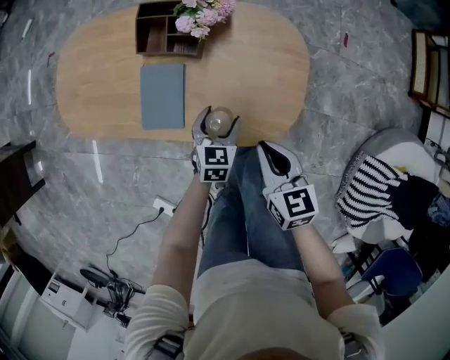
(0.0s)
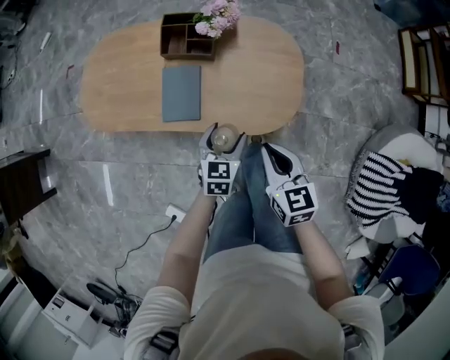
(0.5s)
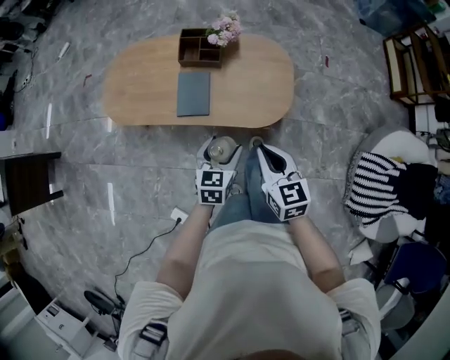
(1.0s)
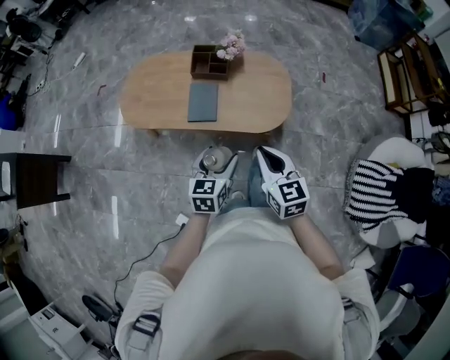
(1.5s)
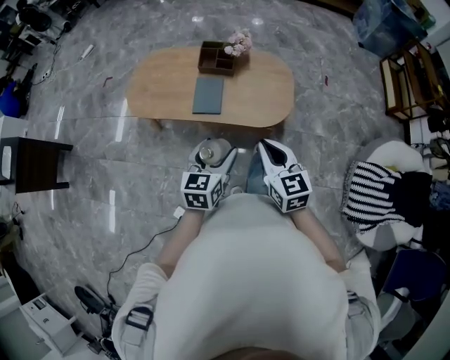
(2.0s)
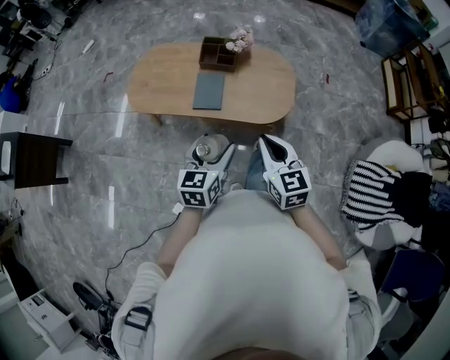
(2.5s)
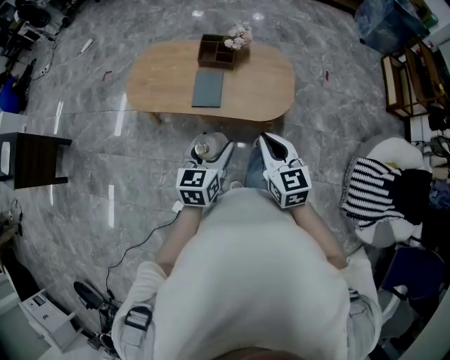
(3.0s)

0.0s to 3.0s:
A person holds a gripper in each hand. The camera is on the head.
0.0s to 1.5s: The right gripper goes some 40 cm backward and upward. Meanwhile the left gripper goes approximately 50 cm upward and backward.
1.5s to 3.0s: The left gripper shifts approximately 5 cm upward.

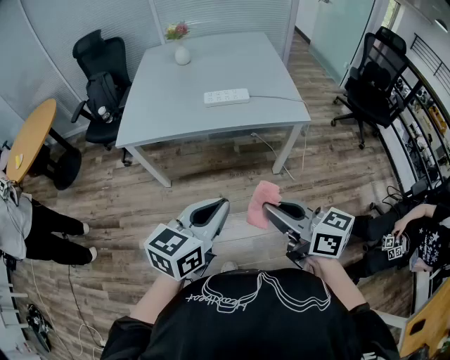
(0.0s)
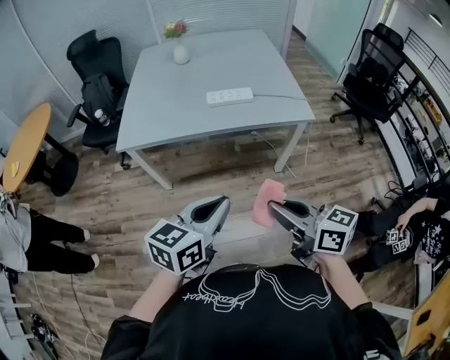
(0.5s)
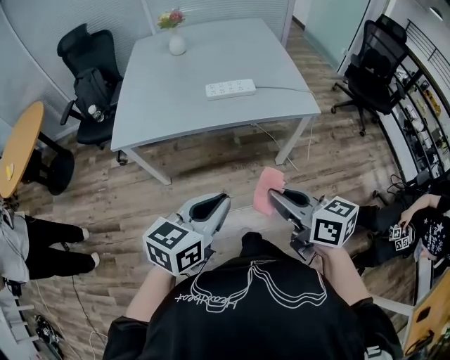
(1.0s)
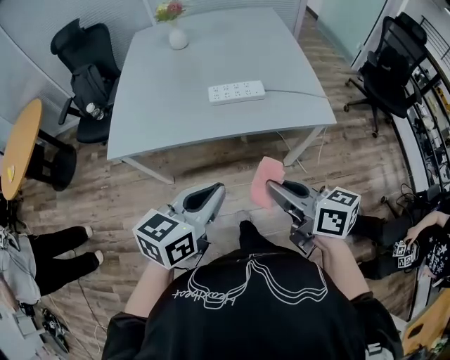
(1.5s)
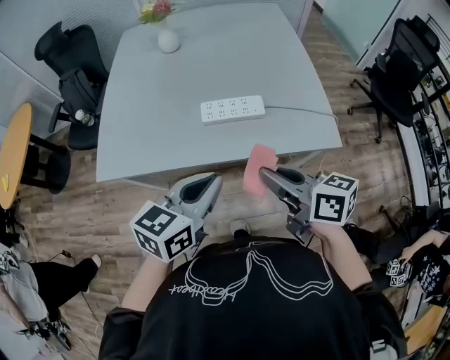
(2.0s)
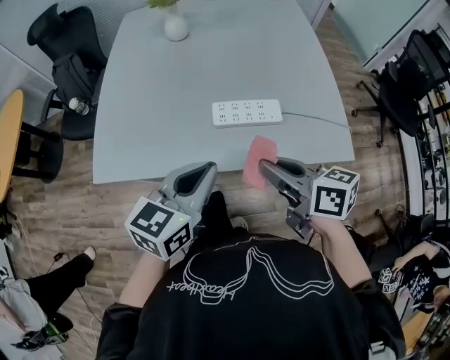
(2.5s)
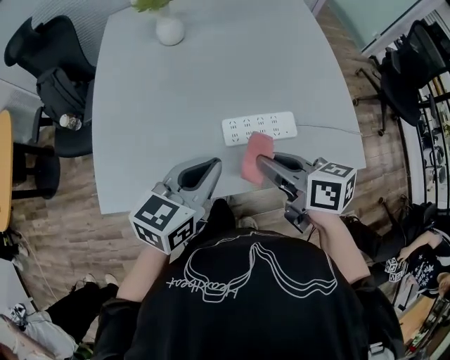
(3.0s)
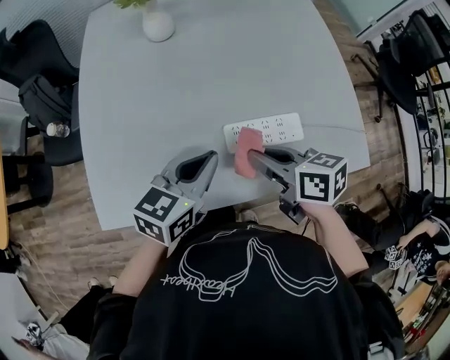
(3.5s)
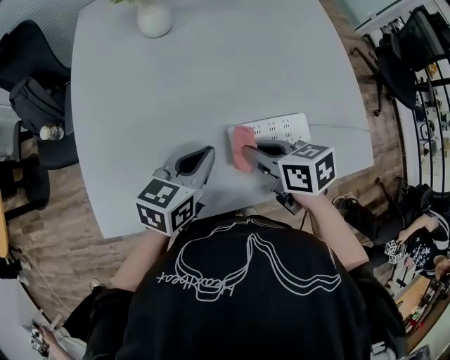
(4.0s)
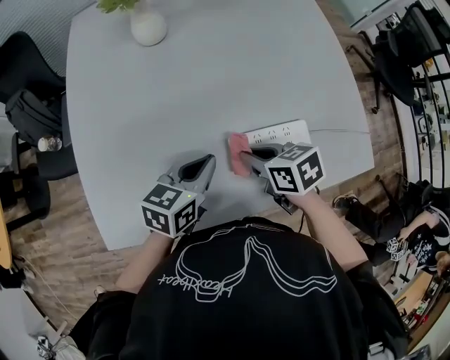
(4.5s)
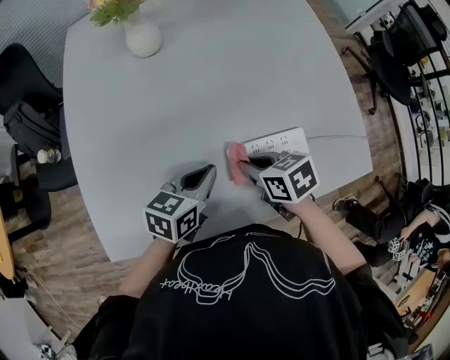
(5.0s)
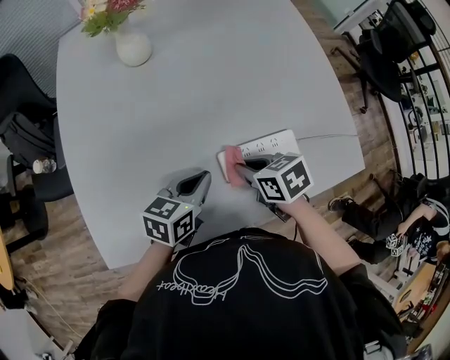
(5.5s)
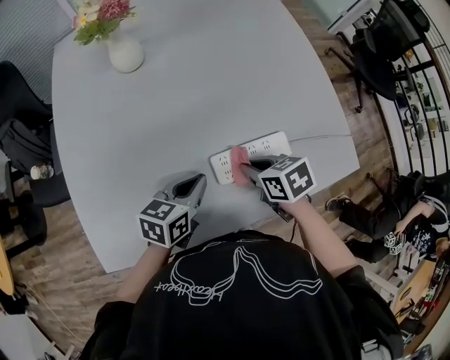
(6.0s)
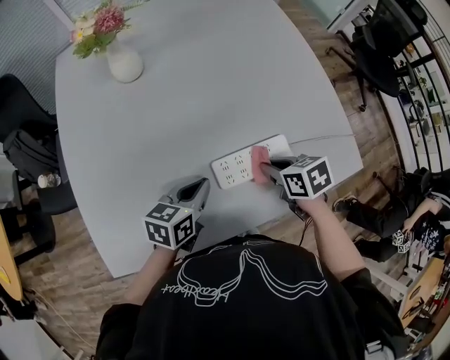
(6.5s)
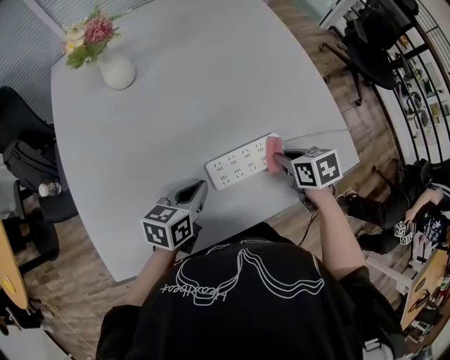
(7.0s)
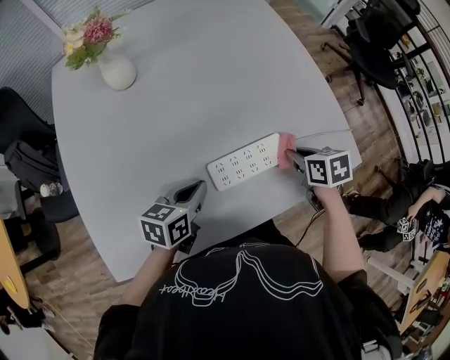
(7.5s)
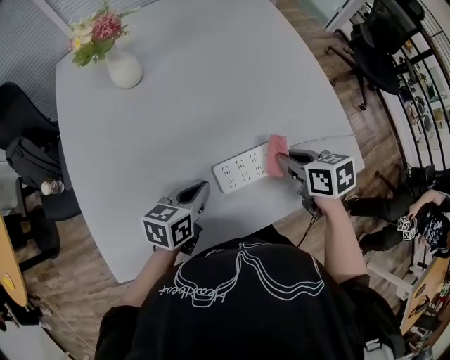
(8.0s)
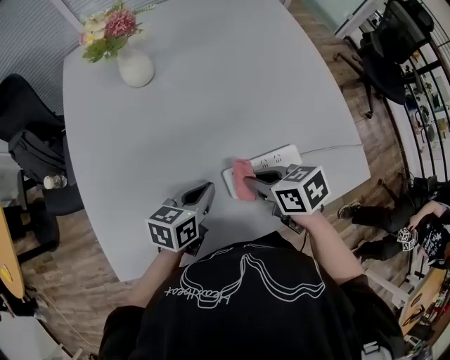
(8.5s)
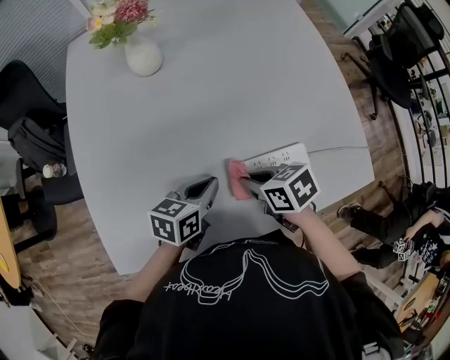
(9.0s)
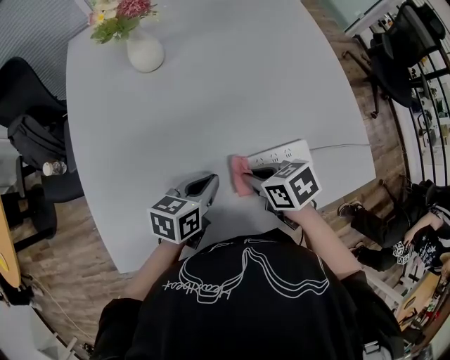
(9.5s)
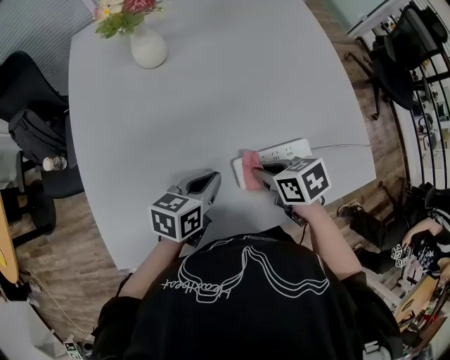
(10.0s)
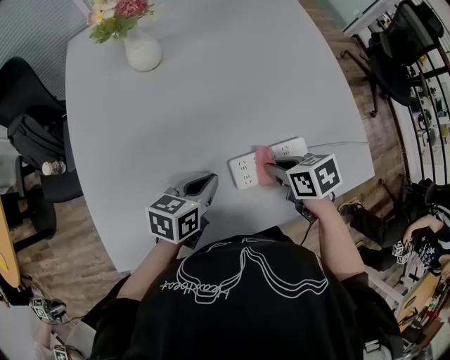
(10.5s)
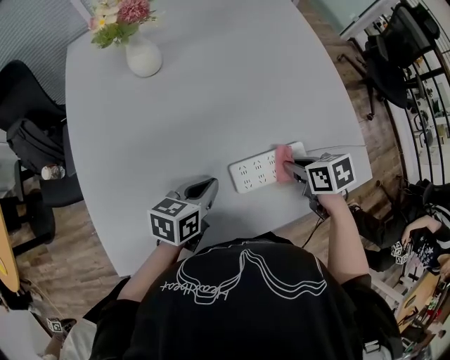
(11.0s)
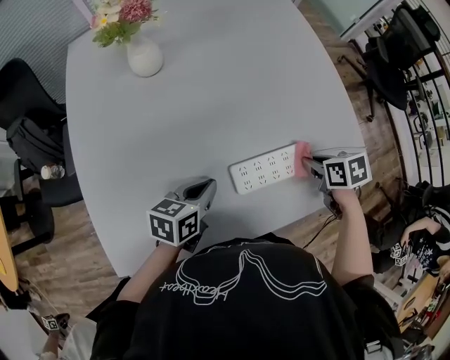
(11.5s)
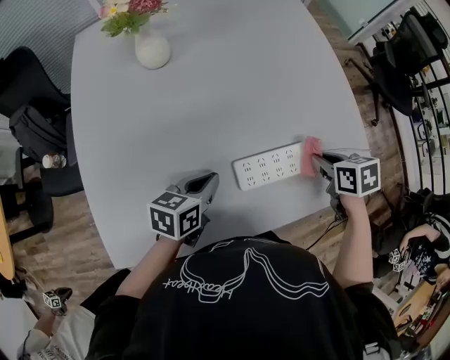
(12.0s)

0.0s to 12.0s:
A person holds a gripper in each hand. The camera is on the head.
0.0s to 2.0s: Both grippers move forward, some 35 cm.
2.0s to 4.0s: The left gripper goes about 30 cm forward and downward, while the right gripper moves forward, downward and to the left, some 35 cm, and rotates some 30 degrees.
4.0s to 6.0s: The left gripper moves some 5 cm; the right gripper shifts by roughly 5 cm.
6.0s to 8.0s: The right gripper is displaced to the right by some 10 cm.
8.0s to 10.0s: The right gripper is displaced to the left by some 10 cm.
10.0s to 12.0s: The right gripper heads to the right, covering about 15 cm.

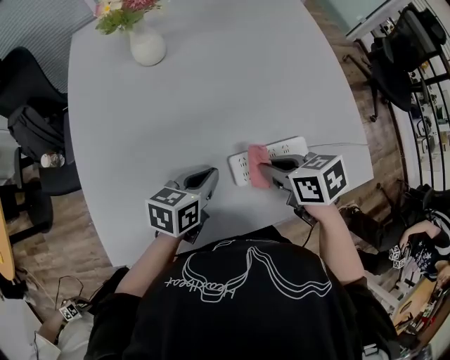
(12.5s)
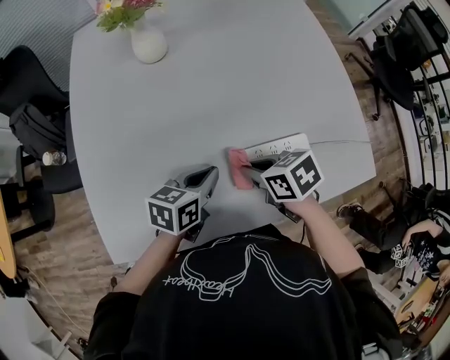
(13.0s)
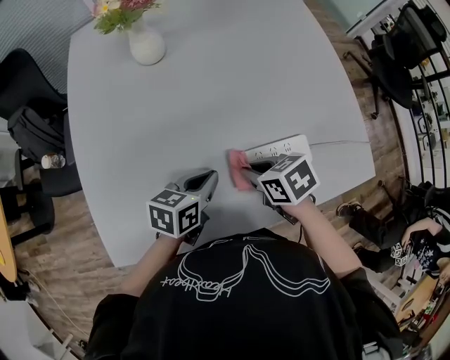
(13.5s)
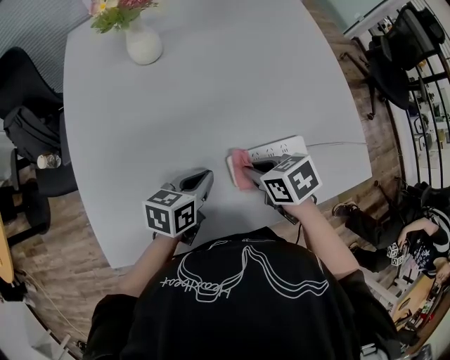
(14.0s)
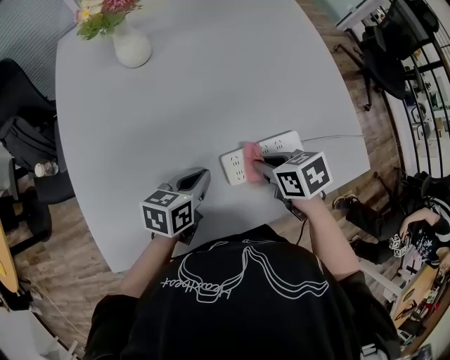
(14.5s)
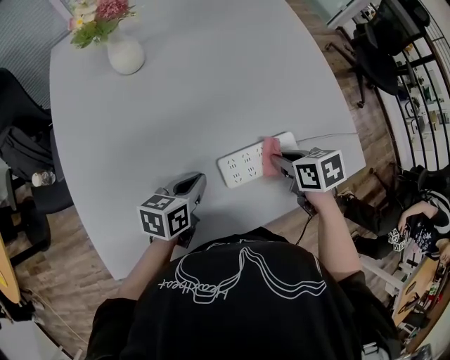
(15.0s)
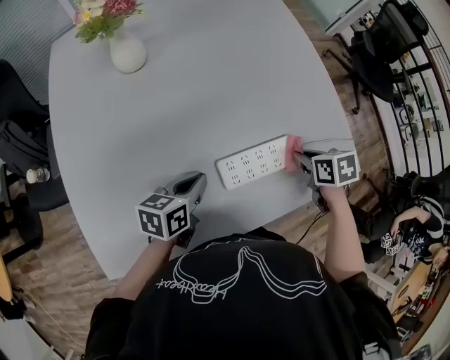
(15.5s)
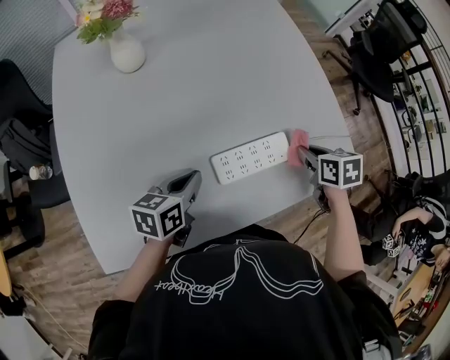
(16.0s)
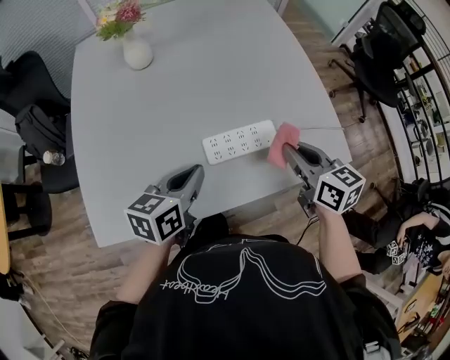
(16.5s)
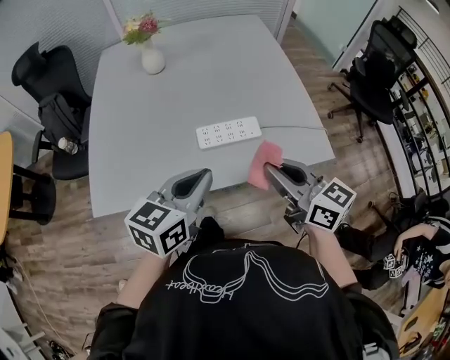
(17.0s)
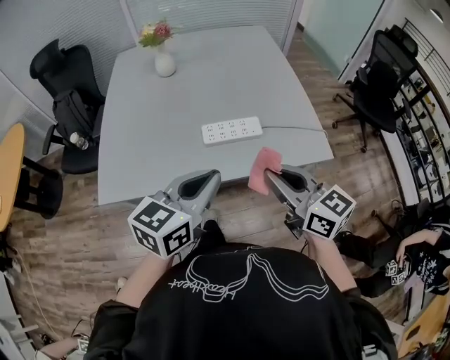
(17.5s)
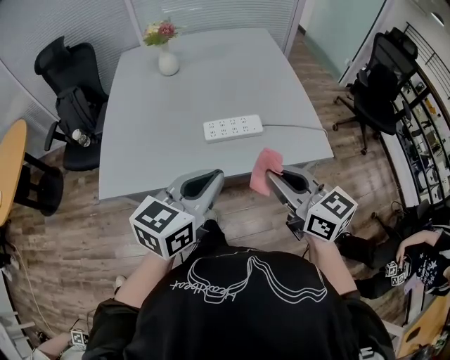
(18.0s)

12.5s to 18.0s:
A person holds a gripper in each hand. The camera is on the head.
14.5s to 16.0s: The right gripper travels to the right by about 15 cm, and rotates approximately 20 degrees.
16.0s to 18.0s: The right gripper moves backward and upward, roughly 35 cm, and points its fingers about 50 degrees further upward. The left gripper heads backward, upward and to the right, covering about 40 cm, and turns by some 30 degrees.

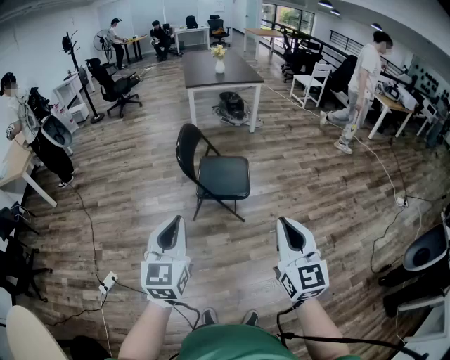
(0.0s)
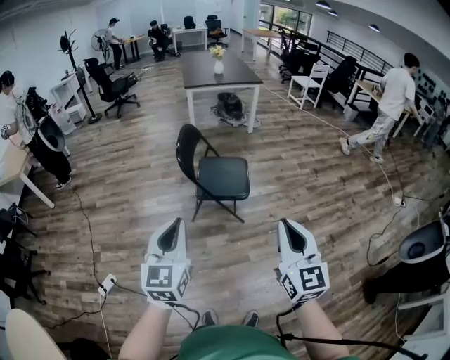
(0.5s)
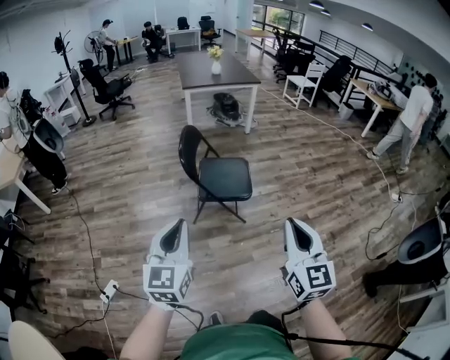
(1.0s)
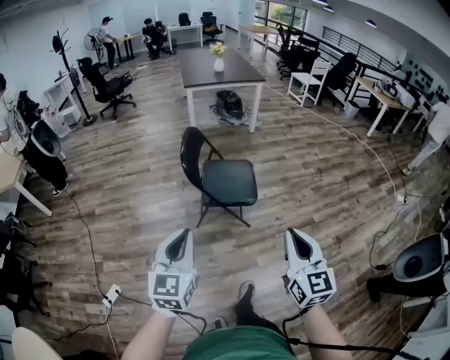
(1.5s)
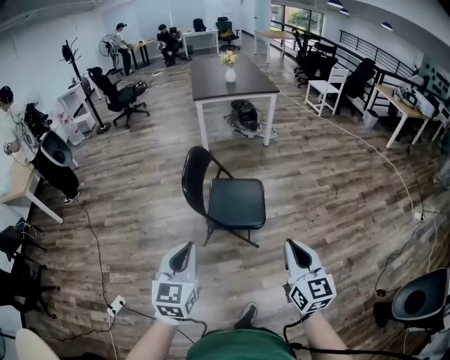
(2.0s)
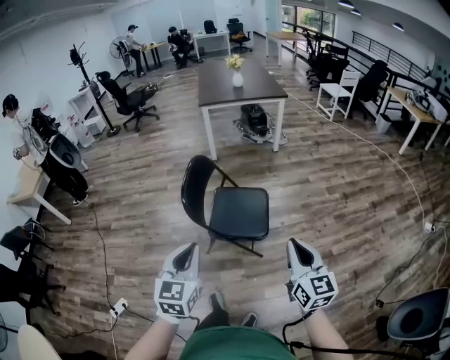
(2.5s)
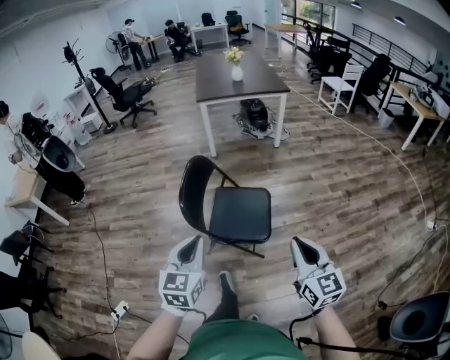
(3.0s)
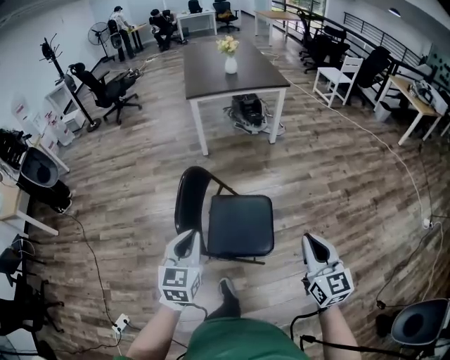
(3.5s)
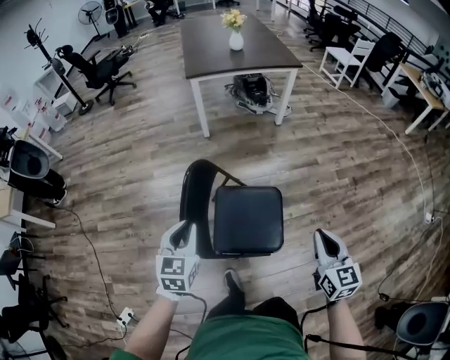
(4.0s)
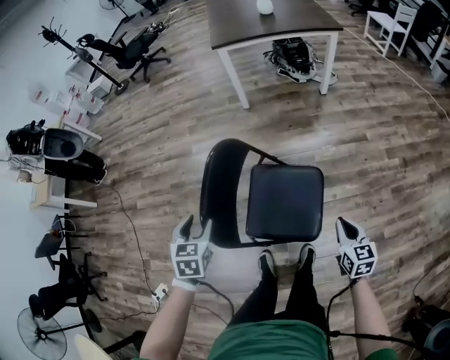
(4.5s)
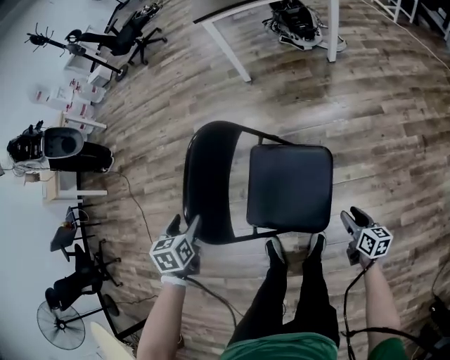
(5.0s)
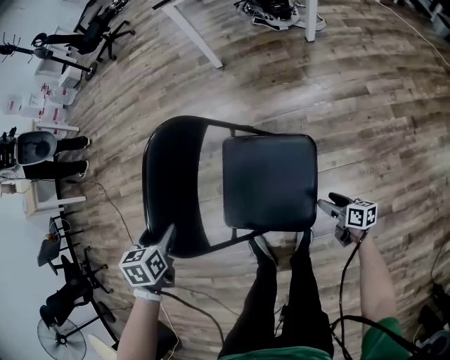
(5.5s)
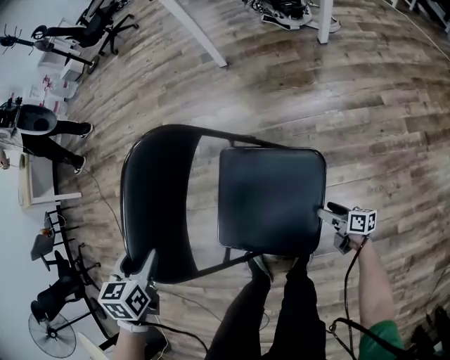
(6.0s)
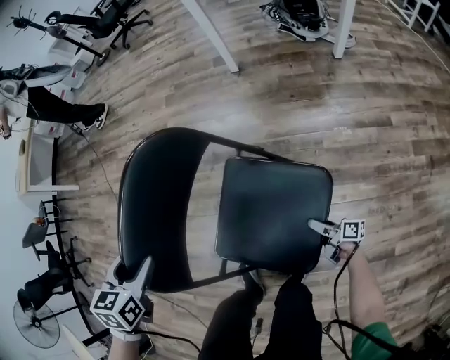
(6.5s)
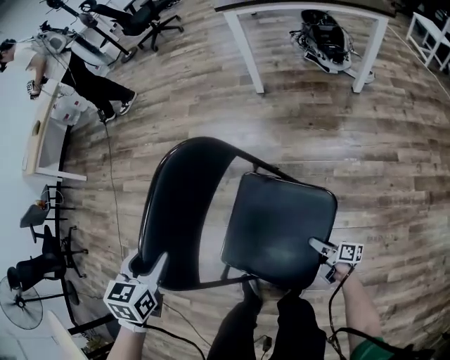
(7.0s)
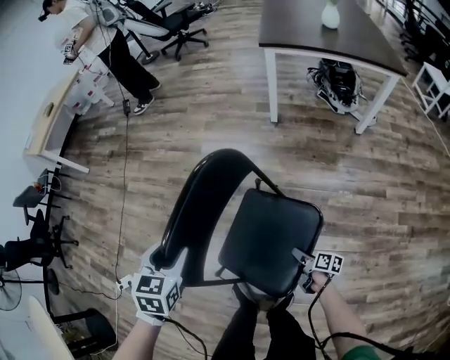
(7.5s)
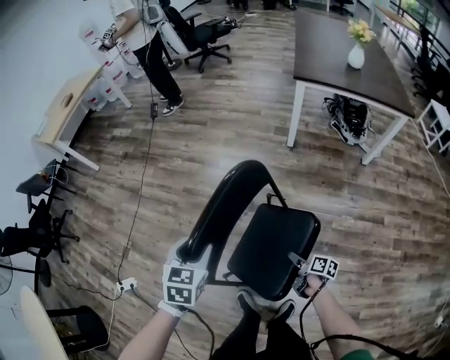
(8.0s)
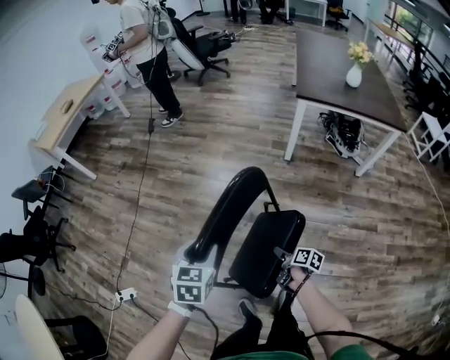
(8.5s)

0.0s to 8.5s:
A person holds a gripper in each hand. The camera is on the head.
0.0s to 2.0s: The left gripper goes some 20 cm forward. The right gripper shifts some 20 cm forward and downward.
2.0s to 4.0s: The grippers both shift forward by some 40 cm.
4.0s to 6.5s: The right gripper moves downward, about 60 cm, changes its angle by roughly 90 degrees, and opens up, while the left gripper travels downward by some 25 cm, swivels some 30 degrees, and opens its fingers.
6.5s to 8.5s: The right gripper shifts approximately 40 cm upward, to the left and forward, points its fingers some 30 degrees further downward, and closes up; the left gripper heads upward, to the left and forward, covering about 25 cm.
